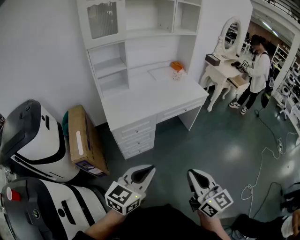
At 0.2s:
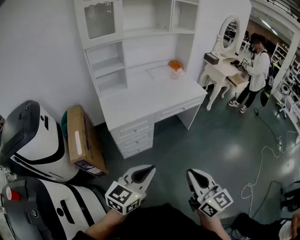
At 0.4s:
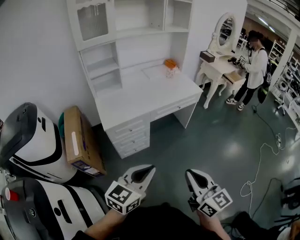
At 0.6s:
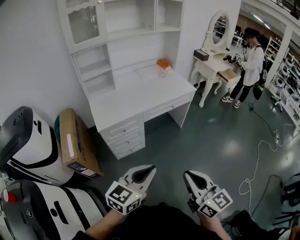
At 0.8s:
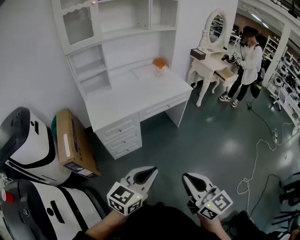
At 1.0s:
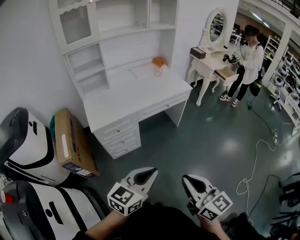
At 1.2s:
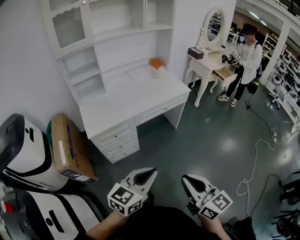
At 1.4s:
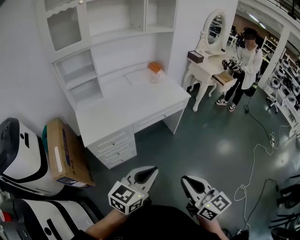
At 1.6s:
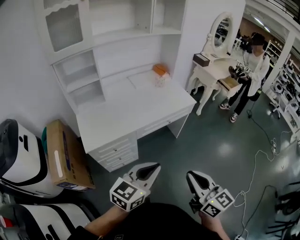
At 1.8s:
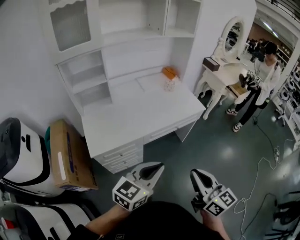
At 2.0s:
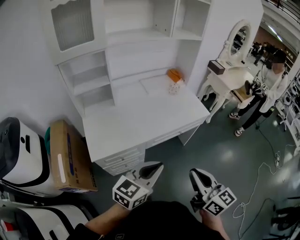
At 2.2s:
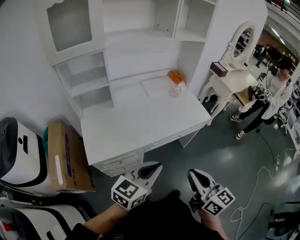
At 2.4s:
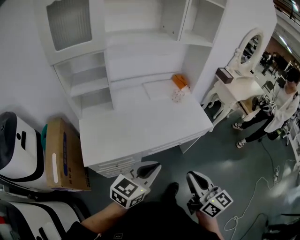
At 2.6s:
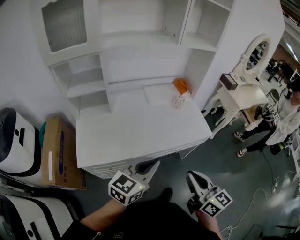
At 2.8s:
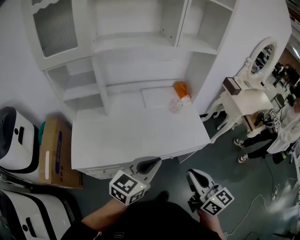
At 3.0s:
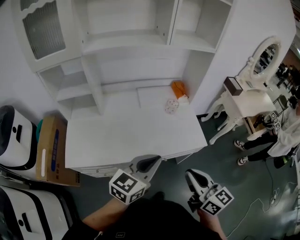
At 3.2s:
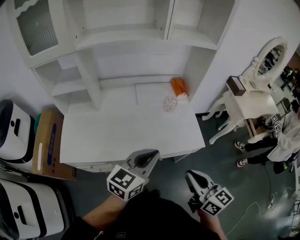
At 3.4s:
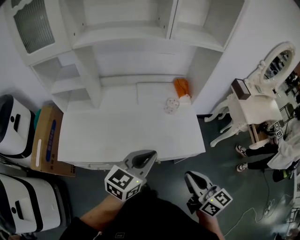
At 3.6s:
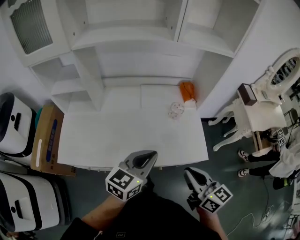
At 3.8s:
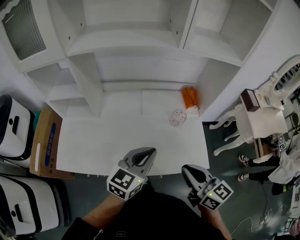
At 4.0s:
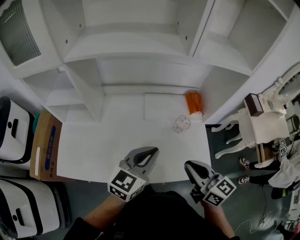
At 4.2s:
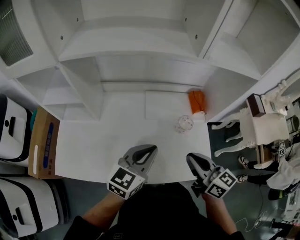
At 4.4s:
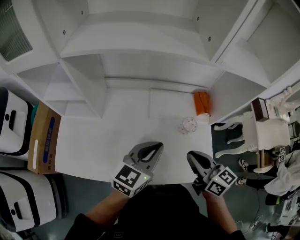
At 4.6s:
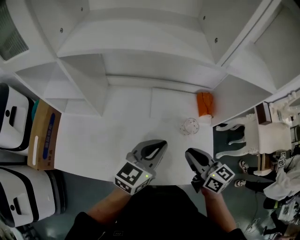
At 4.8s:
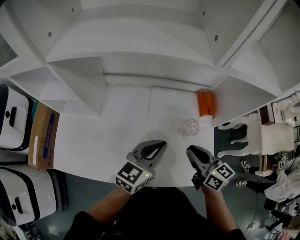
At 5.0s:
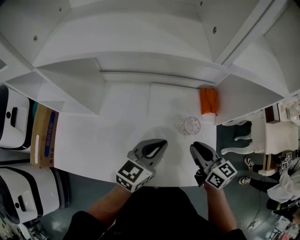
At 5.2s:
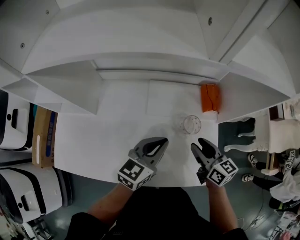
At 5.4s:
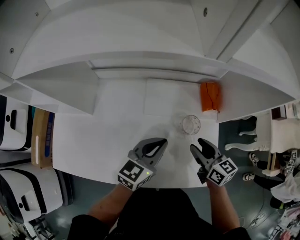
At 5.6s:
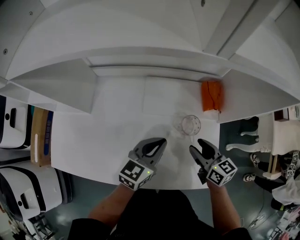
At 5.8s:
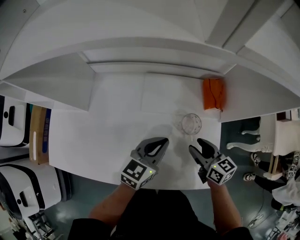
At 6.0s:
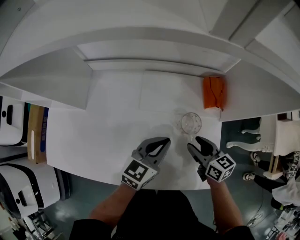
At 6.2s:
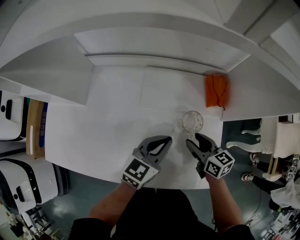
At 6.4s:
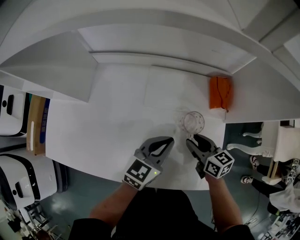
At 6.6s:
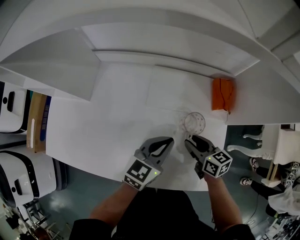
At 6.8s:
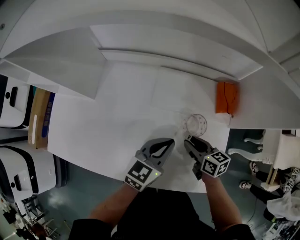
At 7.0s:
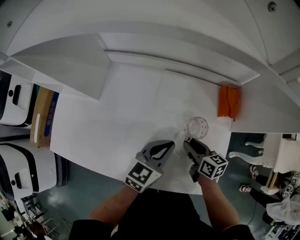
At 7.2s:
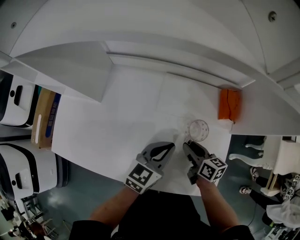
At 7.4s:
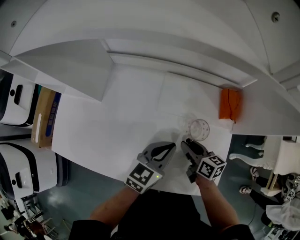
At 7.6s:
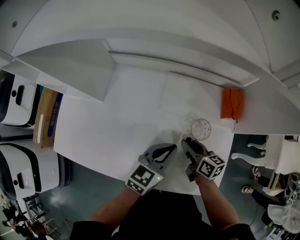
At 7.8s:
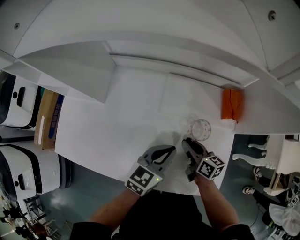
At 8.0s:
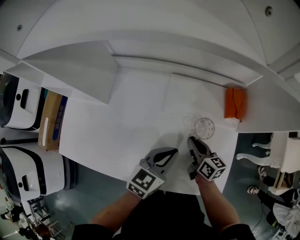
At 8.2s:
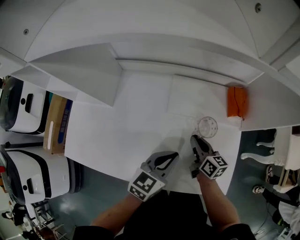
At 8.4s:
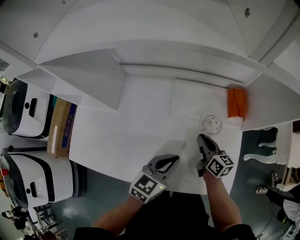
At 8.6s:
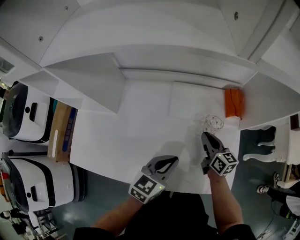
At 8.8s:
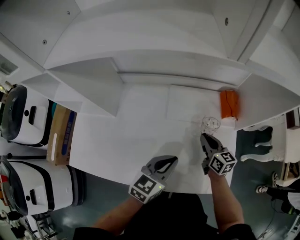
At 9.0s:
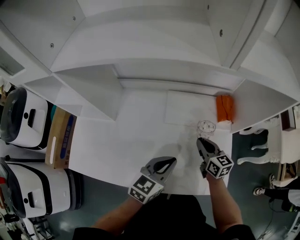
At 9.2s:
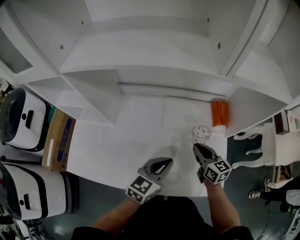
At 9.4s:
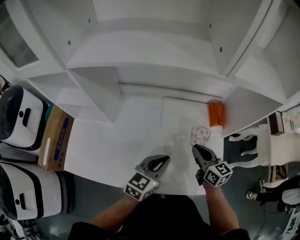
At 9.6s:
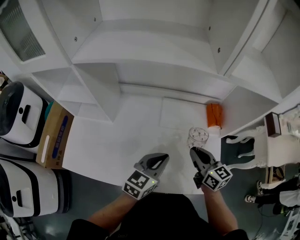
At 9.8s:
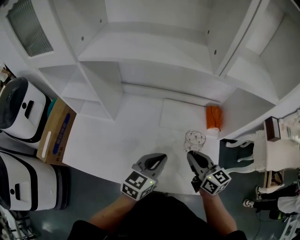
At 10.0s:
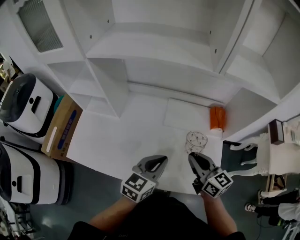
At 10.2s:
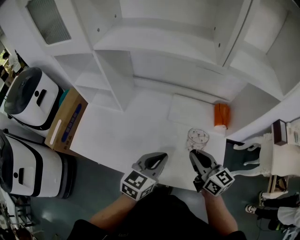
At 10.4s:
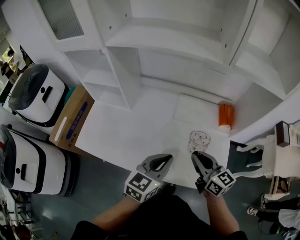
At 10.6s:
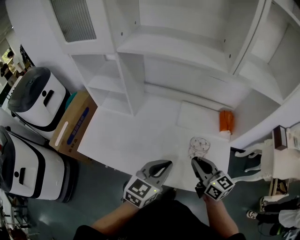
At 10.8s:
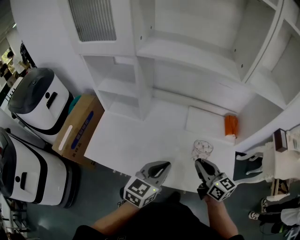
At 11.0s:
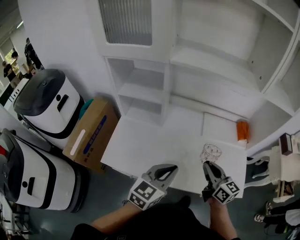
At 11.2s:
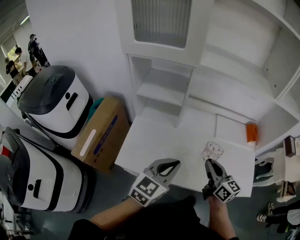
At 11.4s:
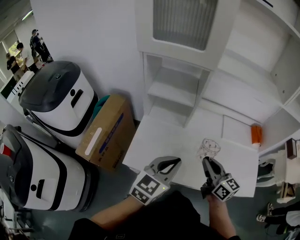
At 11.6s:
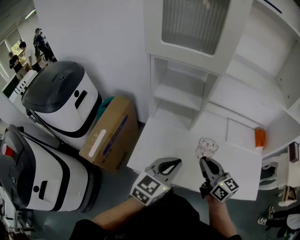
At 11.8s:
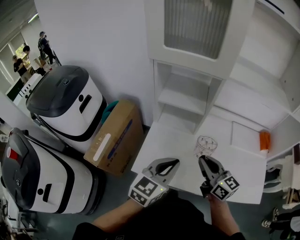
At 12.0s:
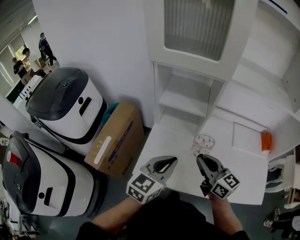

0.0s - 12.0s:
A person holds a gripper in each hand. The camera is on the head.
0.0s - 1.6s: The grippers both shift forward and to the right by some 20 cm.
1.6s - 3.0s: The grippers both shift forward by roughly 35 cm.
3.0s - 4.4s: The two grippers go about 30 cm forward.
4.4s - 6.0s: The right gripper moves downward, forward and to the right, roughly 25 cm, and opens its fingers. The left gripper goes approximately 20 cm downward, to the right and forward.
6.0s - 7.6s: The right gripper is displaced to the left by roughly 10 cm.
7.6s - 9.0s: The right gripper shifts roughly 5 cm upward, turns by about 20 degrees, and closes. Meanwhile the left gripper shifts about 5 cm backward.
9.0s - 10.4s: The left gripper travels backward and upward by about 10 cm, while the right gripper travels backward, upward and to the left by roughly 20 cm.
10.4s - 12.0s: Both grippers are carried to the left, approximately 40 cm.

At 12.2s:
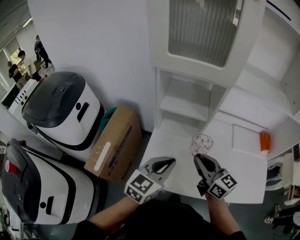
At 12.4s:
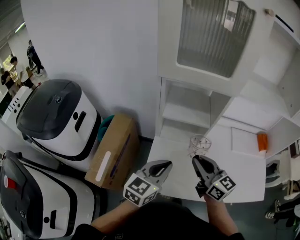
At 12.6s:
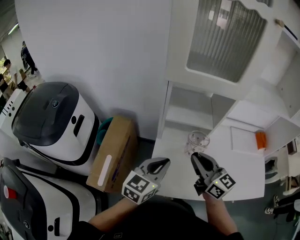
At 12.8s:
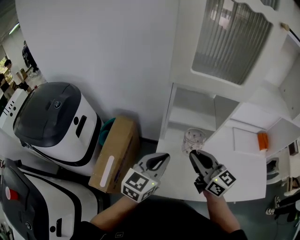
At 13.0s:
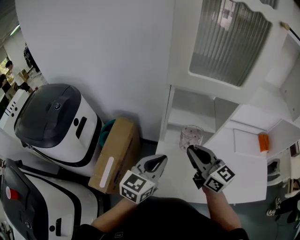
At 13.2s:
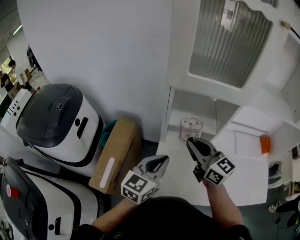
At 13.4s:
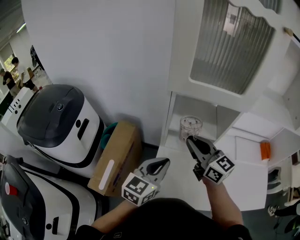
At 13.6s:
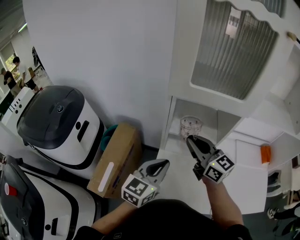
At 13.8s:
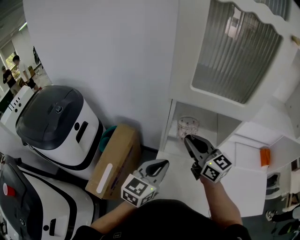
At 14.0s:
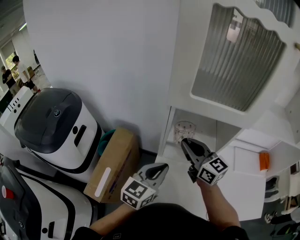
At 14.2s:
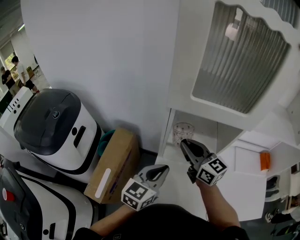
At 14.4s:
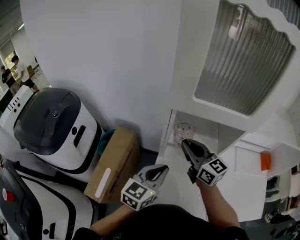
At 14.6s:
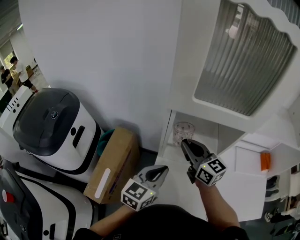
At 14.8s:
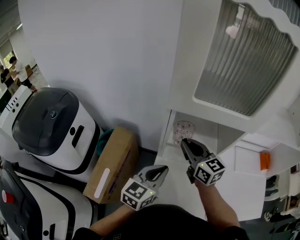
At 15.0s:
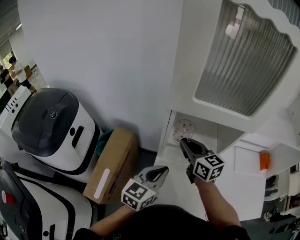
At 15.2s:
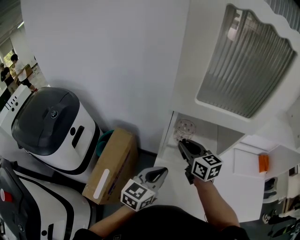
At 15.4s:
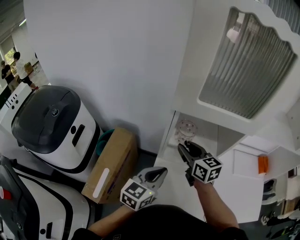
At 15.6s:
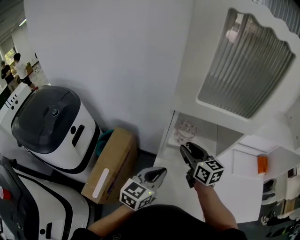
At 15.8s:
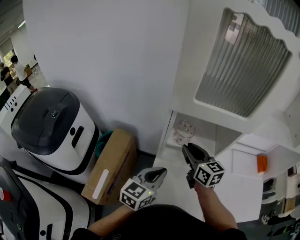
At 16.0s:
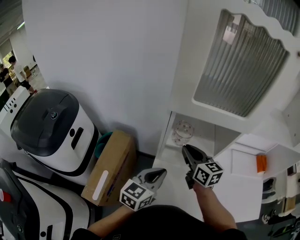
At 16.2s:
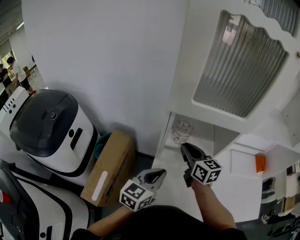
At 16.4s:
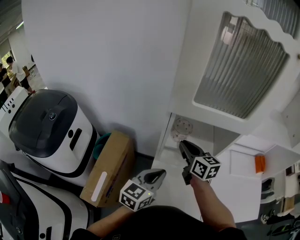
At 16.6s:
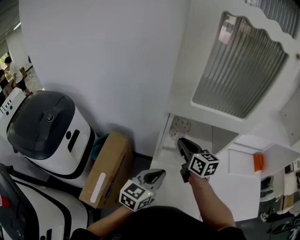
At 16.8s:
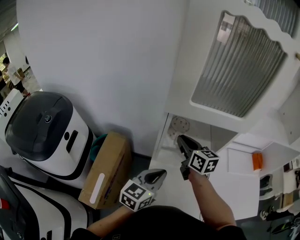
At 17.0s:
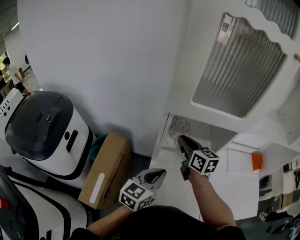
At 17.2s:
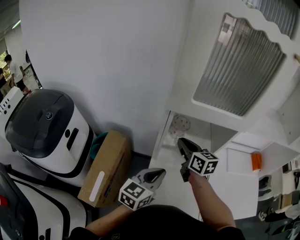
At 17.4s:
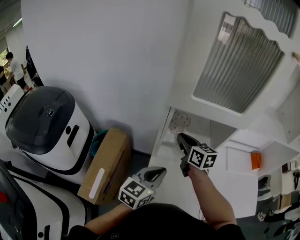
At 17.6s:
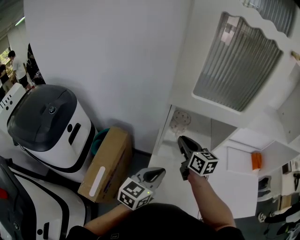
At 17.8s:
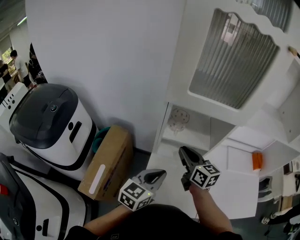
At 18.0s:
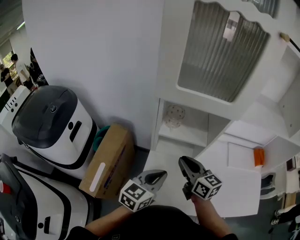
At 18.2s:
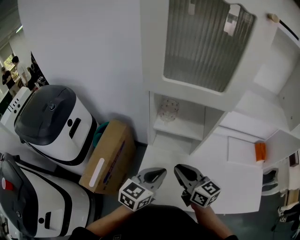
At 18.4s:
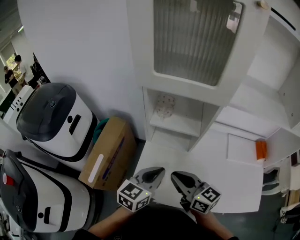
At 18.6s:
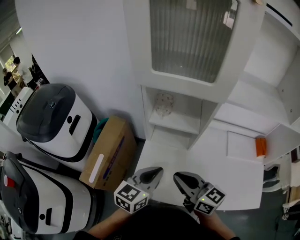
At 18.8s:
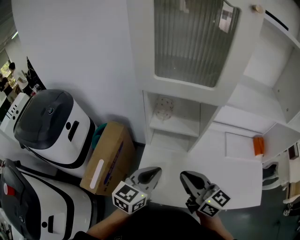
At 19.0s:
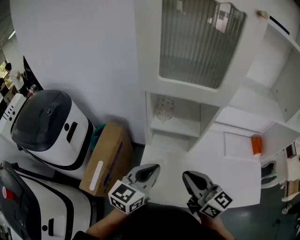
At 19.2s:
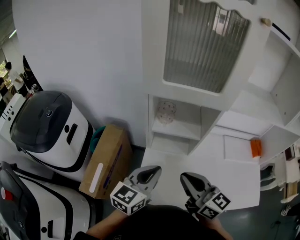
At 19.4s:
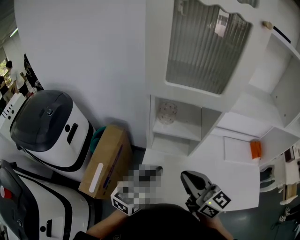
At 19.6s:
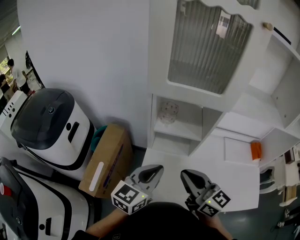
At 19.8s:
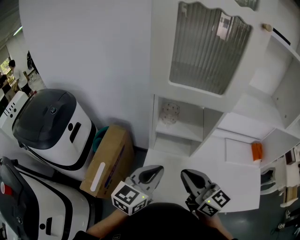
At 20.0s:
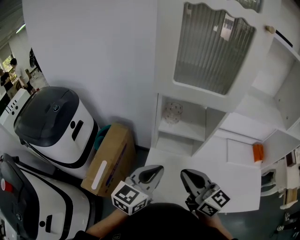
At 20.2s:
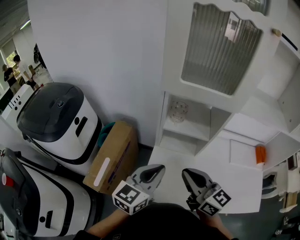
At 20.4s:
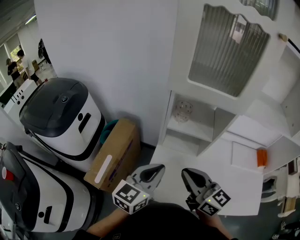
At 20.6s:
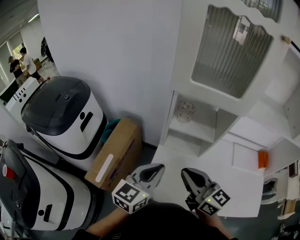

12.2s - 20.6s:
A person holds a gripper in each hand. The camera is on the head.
12.2s - 13.6s: The left gripper moves forward and to the left, about 15 cm. Meanwhile the right gripper moves forward, to the left and upward, roughly 20 cm.
13.6s - 15.0s: The right gripper goes approximately 10 cm forward and downward.
15.0s - 16.4s: The grippers stay close to where they were, moving slightly.
16.4s - 17.8s: The right gripper moves backward, some 5 cm.
17.8s - 19.2s: The left gripper moves about 5 cm. Meanwhile the right gripper shifts about 15 cm backward.
19.2s - 20.6s: The grippers move only a little.

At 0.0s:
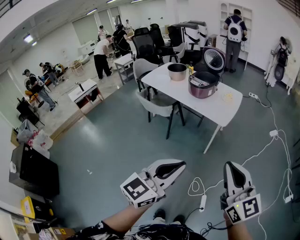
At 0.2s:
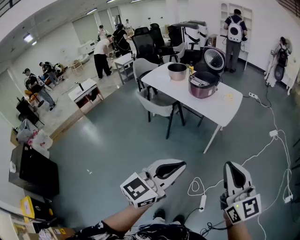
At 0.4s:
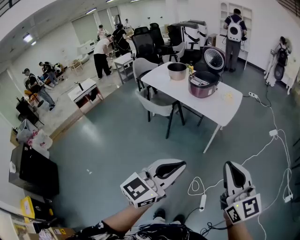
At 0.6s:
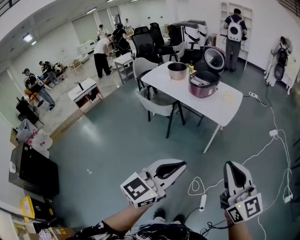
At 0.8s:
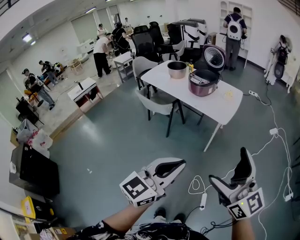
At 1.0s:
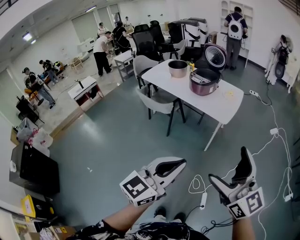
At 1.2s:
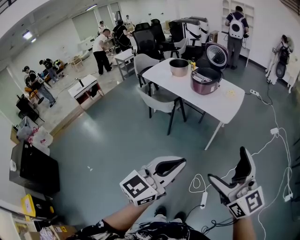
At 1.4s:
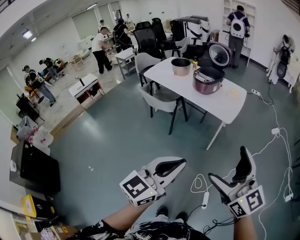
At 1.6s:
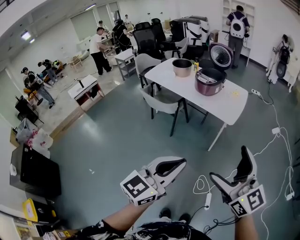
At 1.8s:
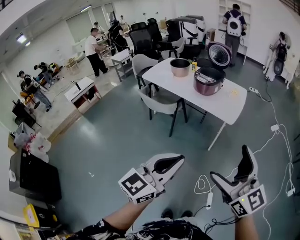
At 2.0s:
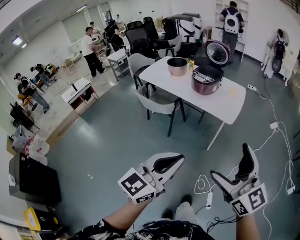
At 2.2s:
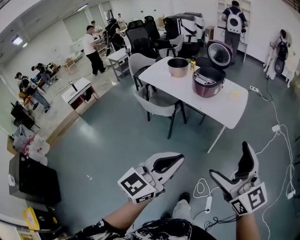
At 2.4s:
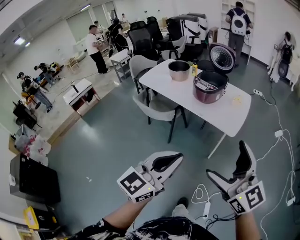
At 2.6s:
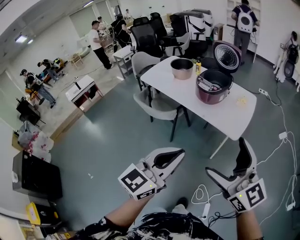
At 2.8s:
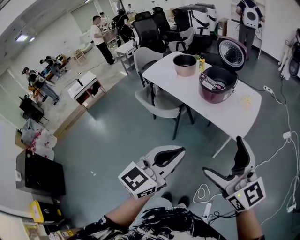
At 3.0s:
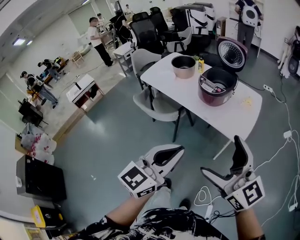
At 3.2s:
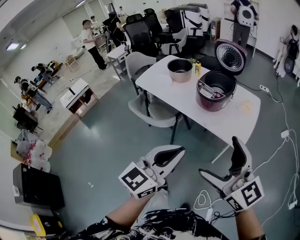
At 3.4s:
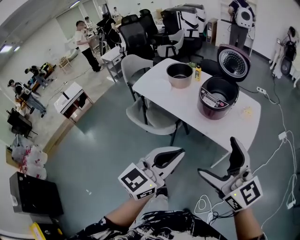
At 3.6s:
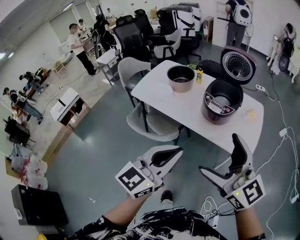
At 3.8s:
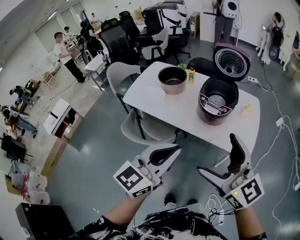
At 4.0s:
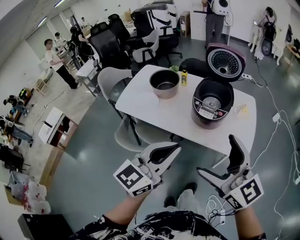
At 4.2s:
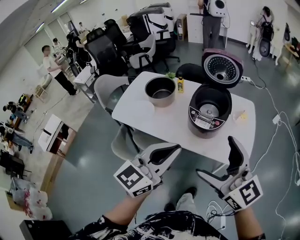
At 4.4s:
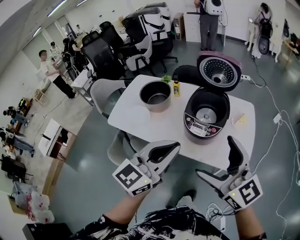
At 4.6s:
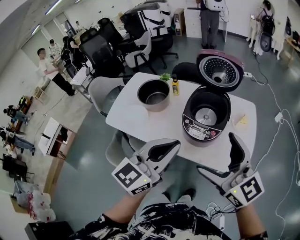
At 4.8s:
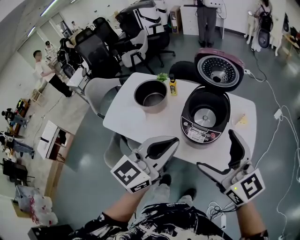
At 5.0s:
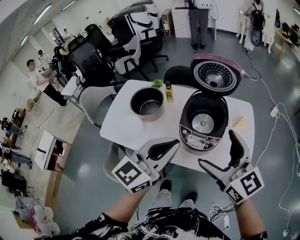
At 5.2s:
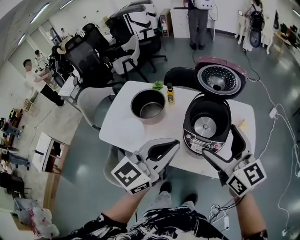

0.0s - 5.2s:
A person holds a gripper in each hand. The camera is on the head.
0.0s - 1.8s: The two grippers go some 10 cm to the left. The right gripper opens its fingers.
1.8s - 3.4s: The pair of grippers is taken forward, some 40 cm.
3.4s - 5.2s: The pair of grippers is taken forward, some 40 cm. The right gripper rotates about 30 degrees.
